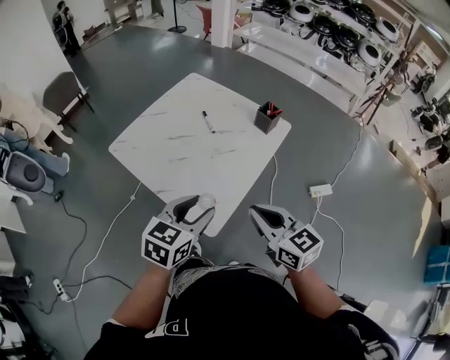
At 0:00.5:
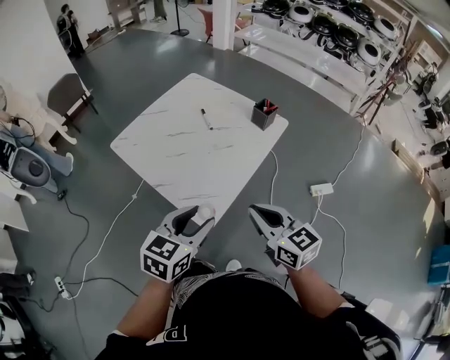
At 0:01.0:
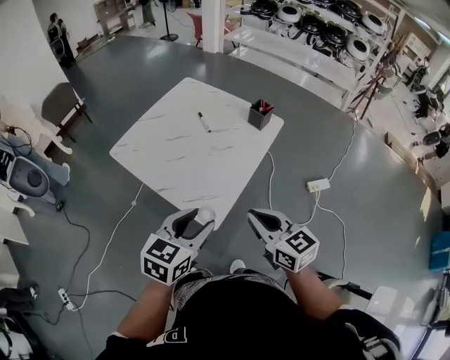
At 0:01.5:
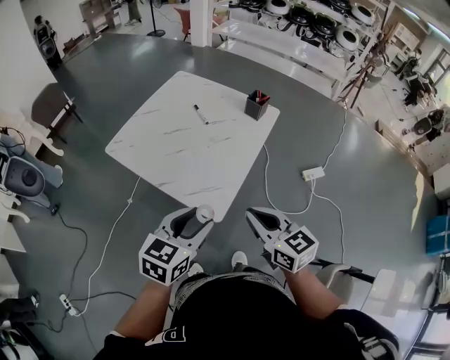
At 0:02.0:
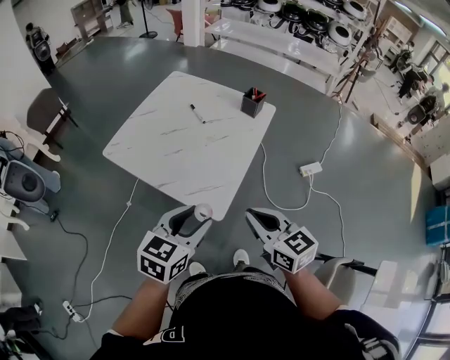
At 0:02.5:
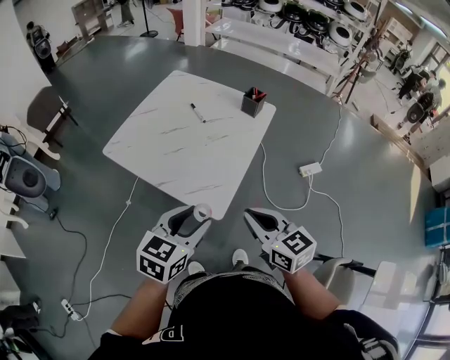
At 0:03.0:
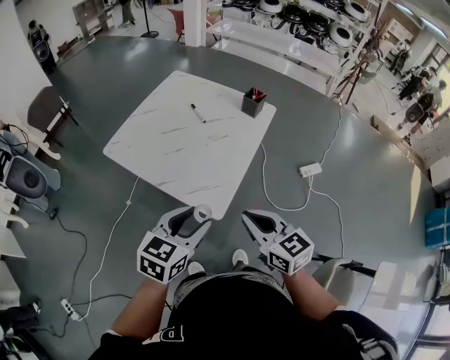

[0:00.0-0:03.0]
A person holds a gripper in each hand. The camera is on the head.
0:00.0 to 0:01.5: Both grippers move backward, about 10 cm.
0:01.5 to 0:03.0: The grippers move only a little.

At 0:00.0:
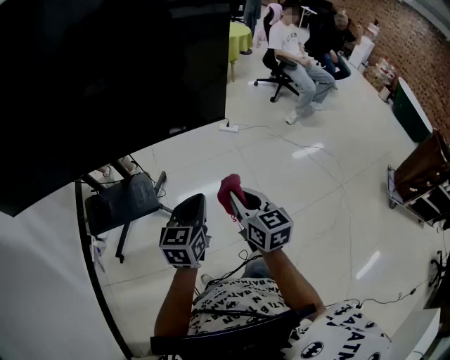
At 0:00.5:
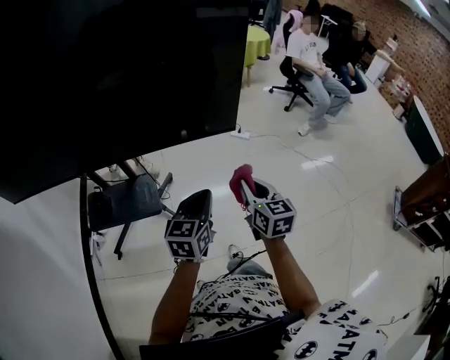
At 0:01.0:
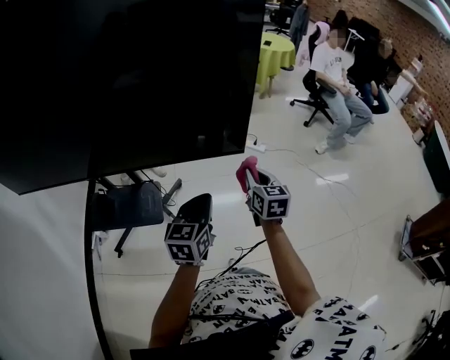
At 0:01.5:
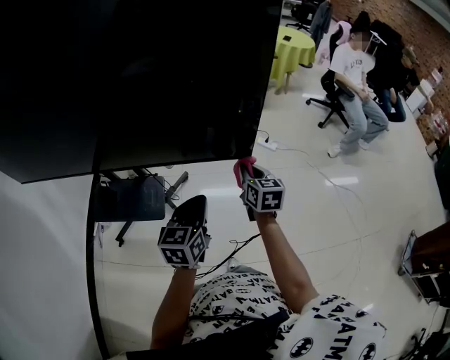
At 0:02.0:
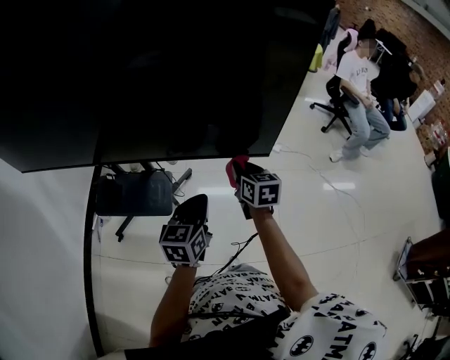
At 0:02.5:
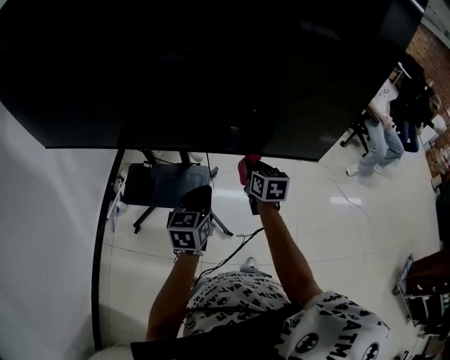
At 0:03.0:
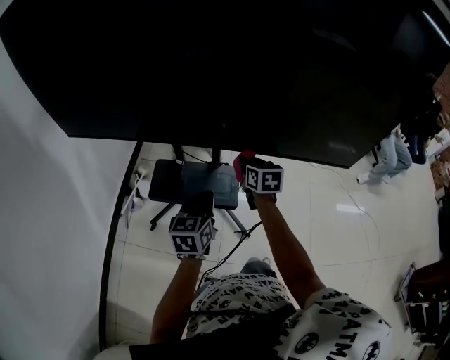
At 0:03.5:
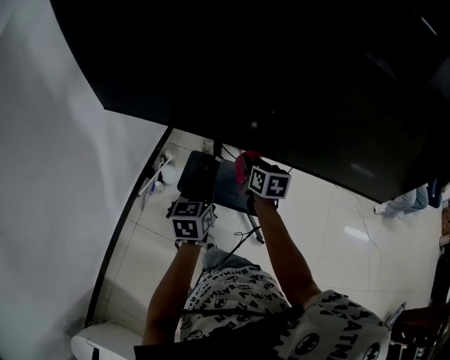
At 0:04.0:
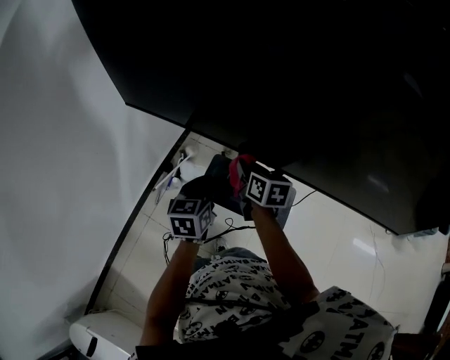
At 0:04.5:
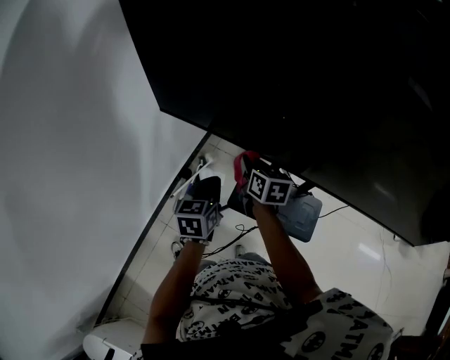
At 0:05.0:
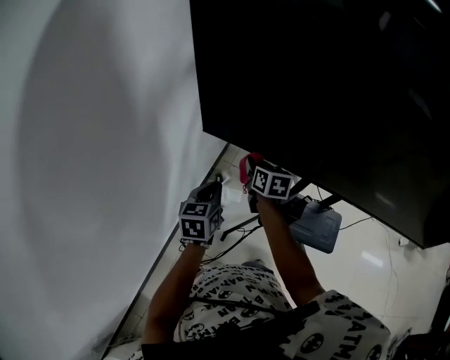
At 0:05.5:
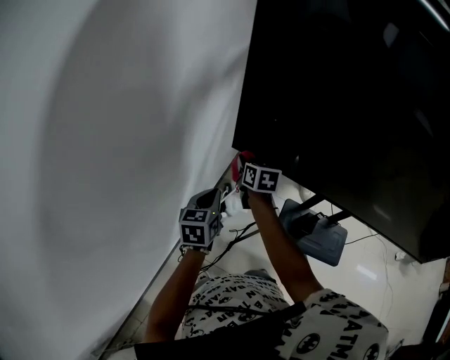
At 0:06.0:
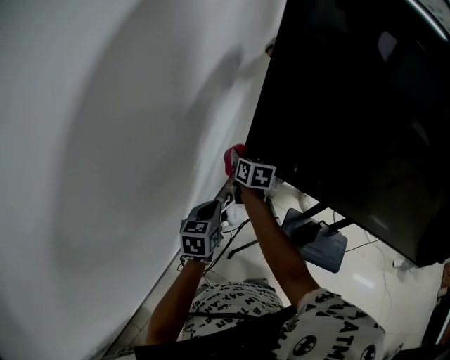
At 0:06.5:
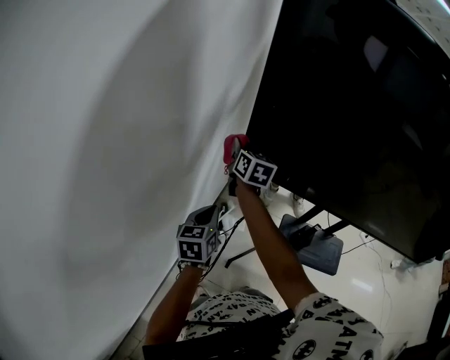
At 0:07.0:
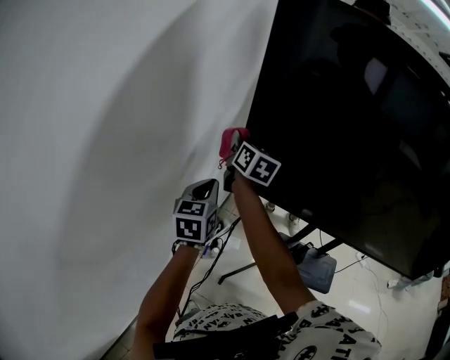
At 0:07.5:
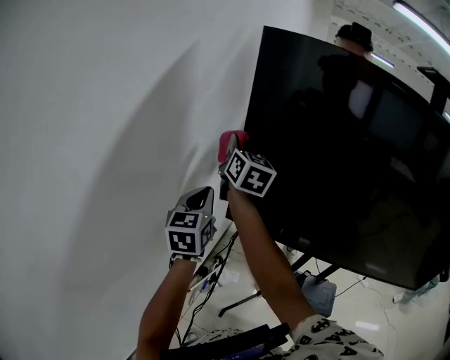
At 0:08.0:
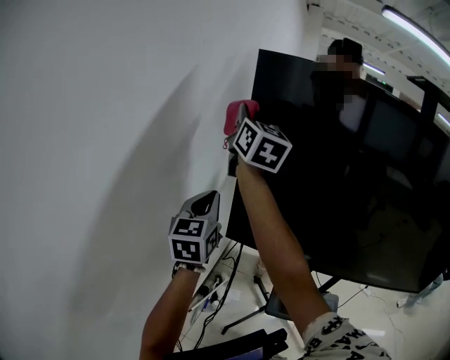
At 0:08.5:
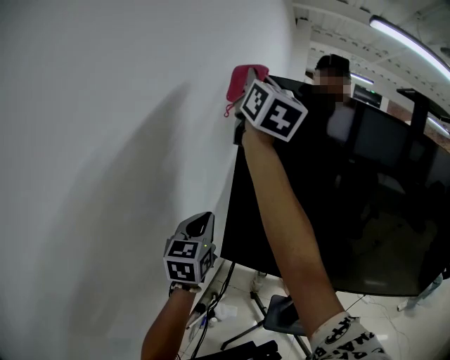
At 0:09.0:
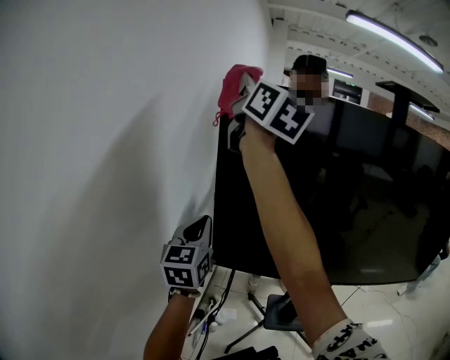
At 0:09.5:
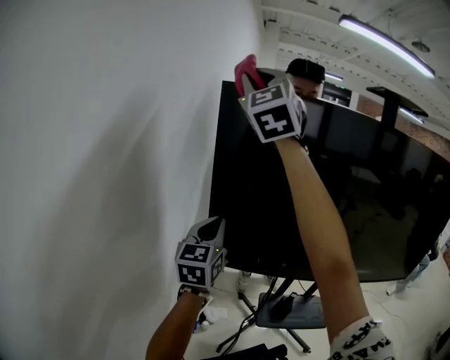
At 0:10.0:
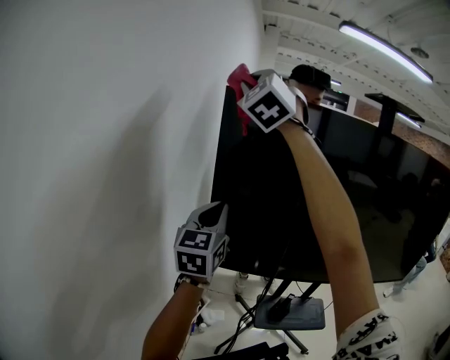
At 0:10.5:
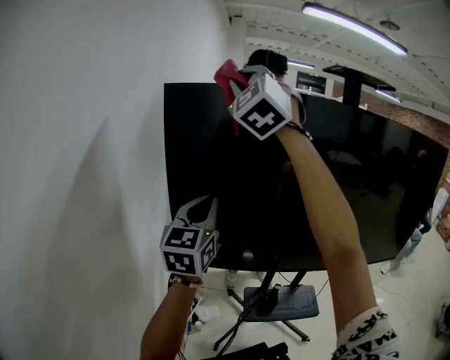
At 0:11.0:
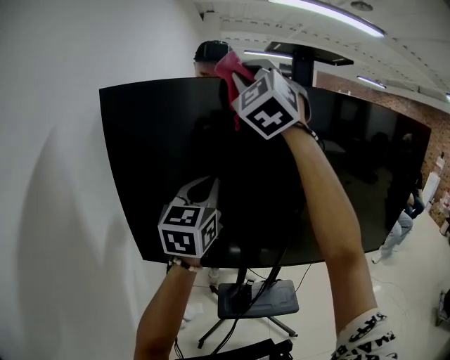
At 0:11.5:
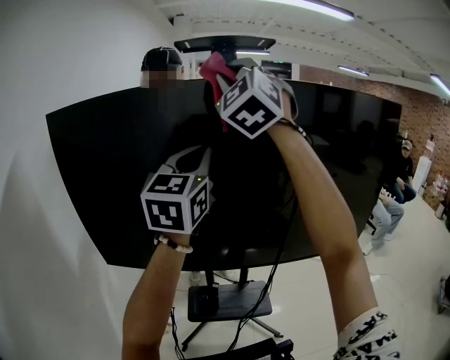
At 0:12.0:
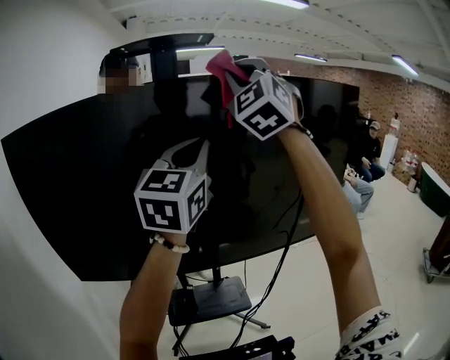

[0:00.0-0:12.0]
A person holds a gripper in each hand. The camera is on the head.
0:00.0 to 0:02.0: The left gripper moves forward, some 15 cm. The right gripper is displaced forward by roughly 30 cm.
0:02.0 to 0:04.0: Both grippers are carried approximately 60 cm. The left gripper turns by about 30 degrees. Meanwhile the right gripper rotates some 30 degrees.
0:04.0 to 0:06.0: The two grippers travel together, to the left and forward, approximately 50 cm.
0:06.0 to 0:08.0: The right gripper is displaced upward by some 50 cm, and tips its fingers upward by approximately 40 degrees. The left gripper shifts about 35 cm upward, and swivels some 30 degrees.
0:08.0 to 0:10.0: The left gripper goes some 10 cm upward and to the right. The right gripper travels upward by about 20 cm, and rolls counterclockwise, seen from behind, by roughly 70 degrees.
0:10.0 to 0:12.0: The pair of grippers is taken to the right, some 60 cm. The right gripper turns by about 20 degrees. The left gripper turns by about 30 degrees.

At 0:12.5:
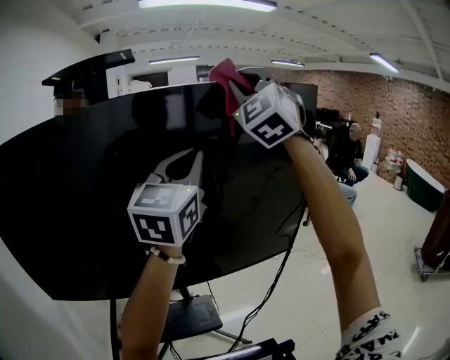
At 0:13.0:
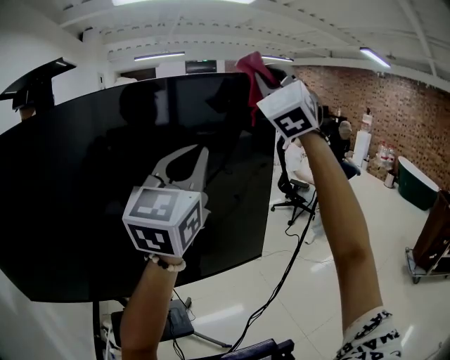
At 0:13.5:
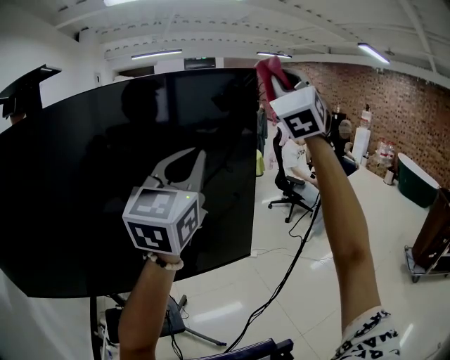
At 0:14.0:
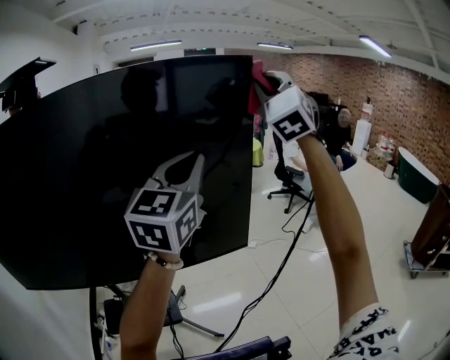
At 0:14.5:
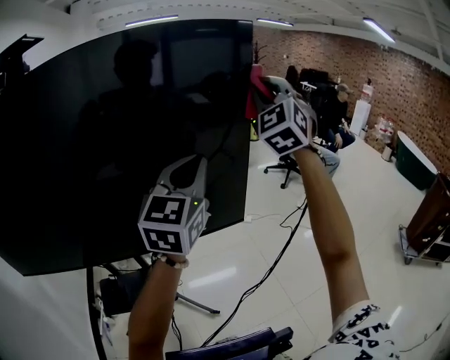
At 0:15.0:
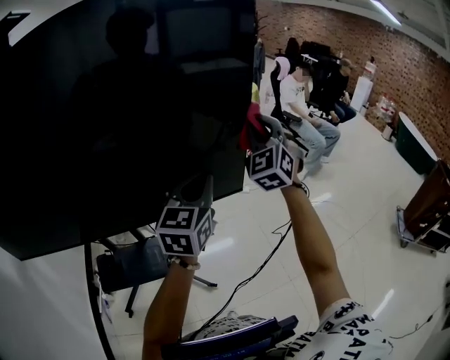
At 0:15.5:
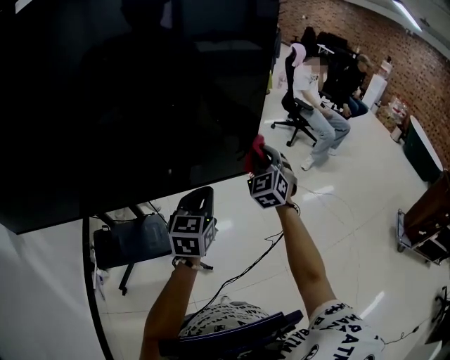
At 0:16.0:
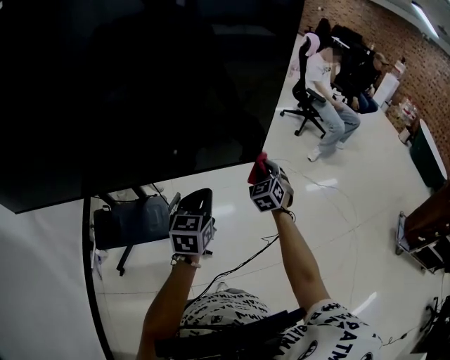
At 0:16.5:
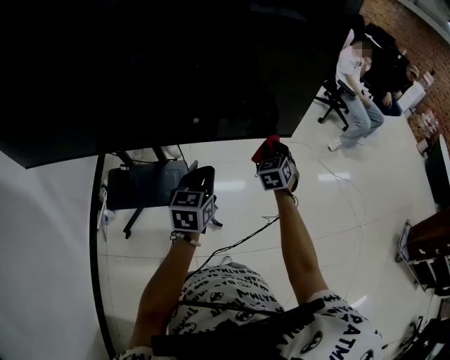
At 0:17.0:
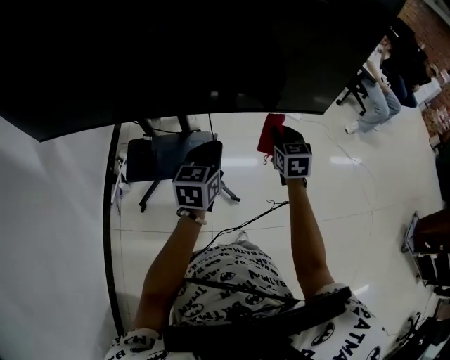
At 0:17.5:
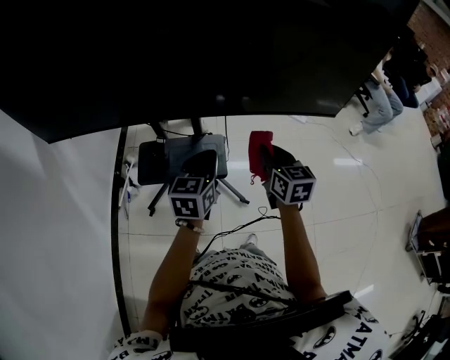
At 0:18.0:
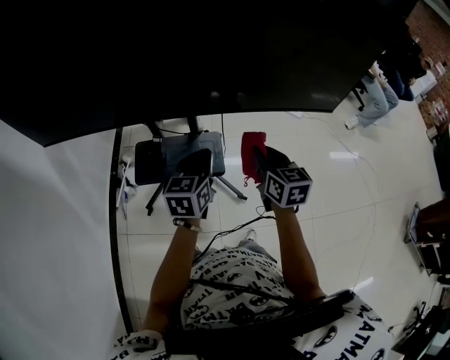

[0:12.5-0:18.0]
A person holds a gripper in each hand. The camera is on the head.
0:12.5 to 0:14.5: The right gripper goes roughly 35 cm to the right, downward and forward. The left gripper shifts roughly 25 cm to the right and downward.
0:14.5 to 0:16.0: The right gripper travels downward by some 50 cm, and tilts its fingers approximately 30 degrees downward; the left gripper moves downward, some 35 cm, and swivels approximately 30 degrees.
0:16.0 to 0:18.0: The left gripper shifts approximately 25 cm to the left. Meanwhile the right gripper is displaced to the left and backward by roughly 35 cm, and rotates around the line of its fingers by some 40 degrees, clockwise from behind.

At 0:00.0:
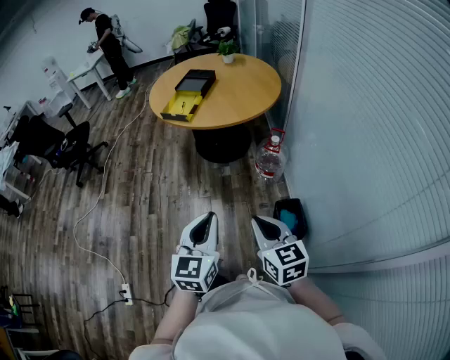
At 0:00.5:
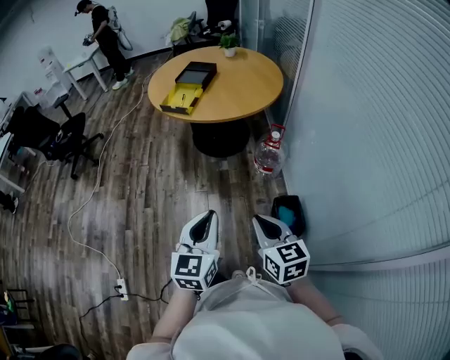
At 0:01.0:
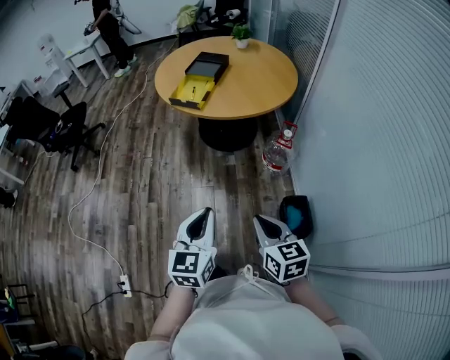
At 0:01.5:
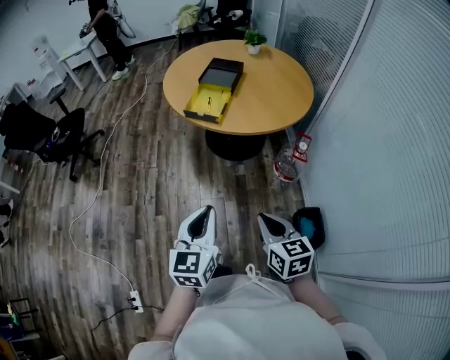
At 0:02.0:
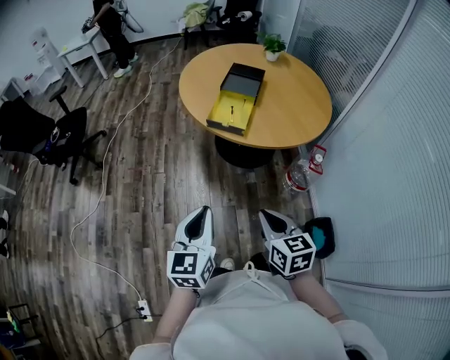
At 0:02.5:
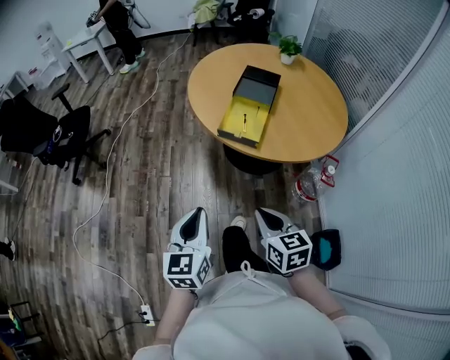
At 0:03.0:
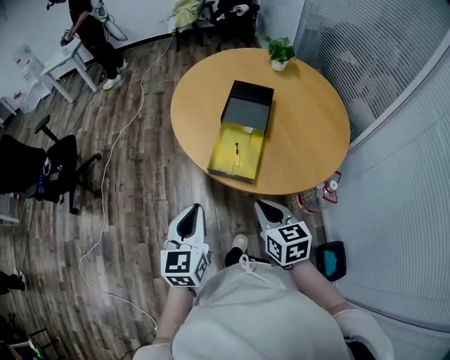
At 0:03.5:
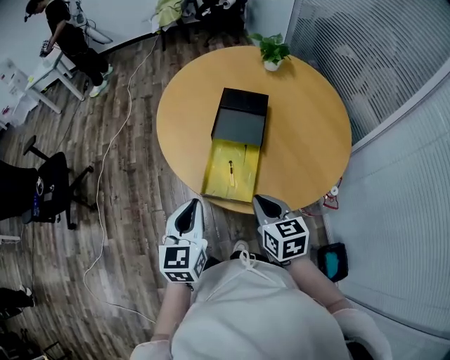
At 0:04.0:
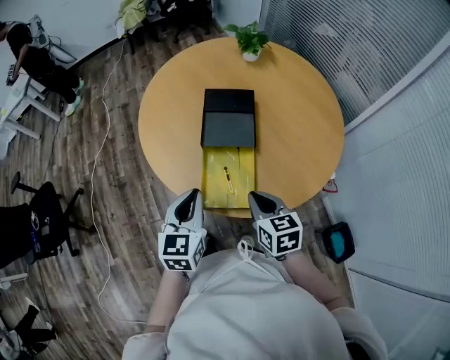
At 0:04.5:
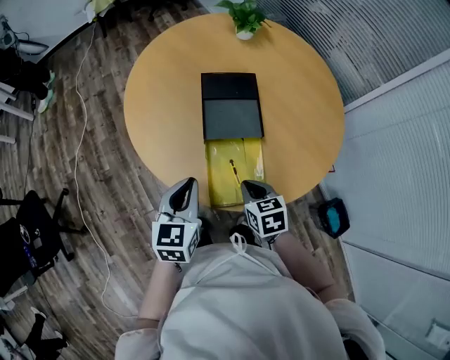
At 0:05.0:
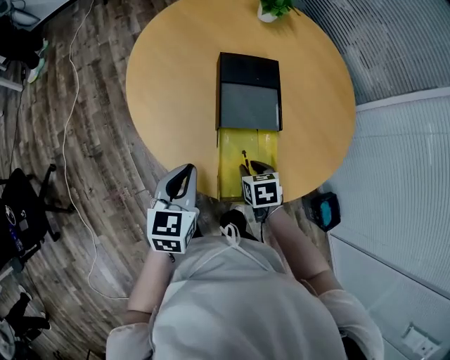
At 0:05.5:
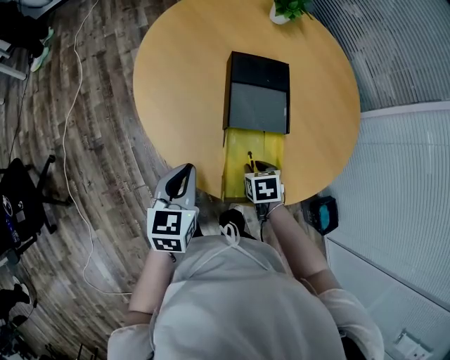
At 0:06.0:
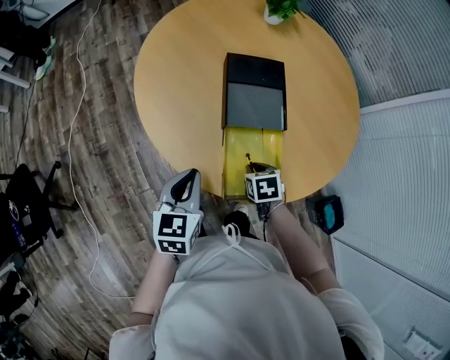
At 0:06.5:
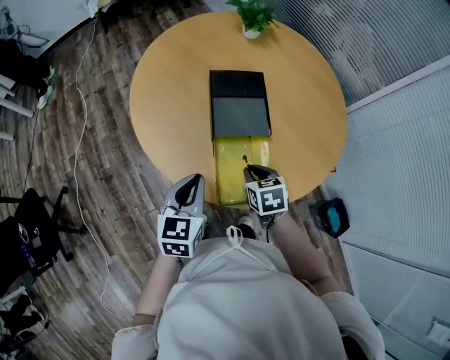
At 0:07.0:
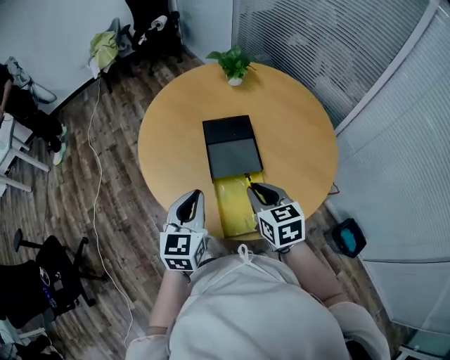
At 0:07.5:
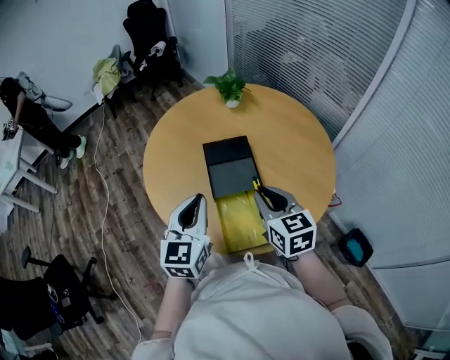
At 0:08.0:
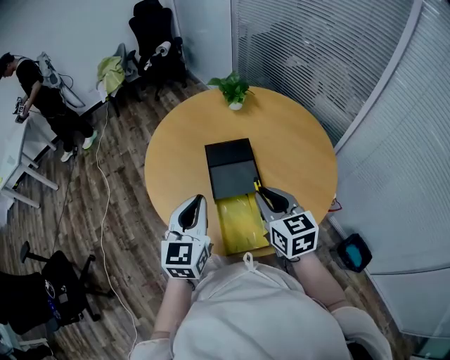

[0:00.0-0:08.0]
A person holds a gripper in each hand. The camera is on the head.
0:00.0 to 0:02.0: The pair of grippers is taken to the left and forward, approximately 50 cm.
0:02.0 to 0:04.0: Both grippers are carried forward, roughly 50 cm. The left gripper swivels some 20 degrees.
0:04.0 to 0:06.0: The right gripper heads downward, forward and to the left, covering roughly 20 cm, and points its fingers approximately 30 degrees further downward. The left gripper shifts approximately 15 cm to the left, downward and forward.
0:06.0 to 0:08.0: The right gripper moves upward, some 30 cm, and tilts its fingers roughly 50 degrees upward. The left gripper travels upward by approximately 20 cm, and turns by roughly 30 degrees.
